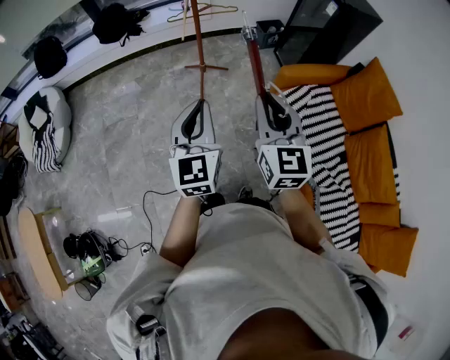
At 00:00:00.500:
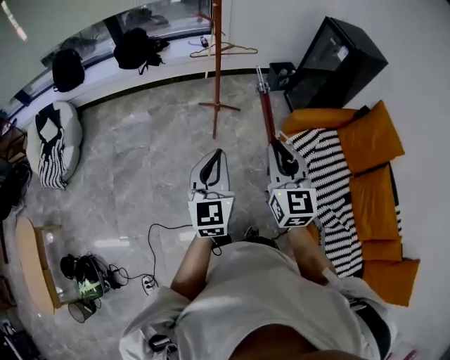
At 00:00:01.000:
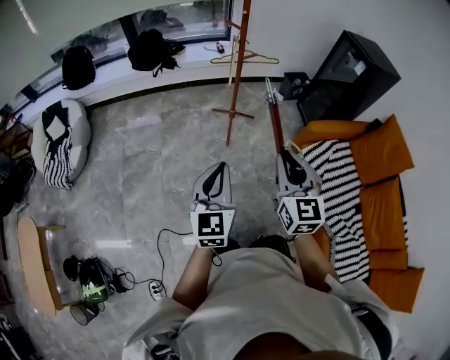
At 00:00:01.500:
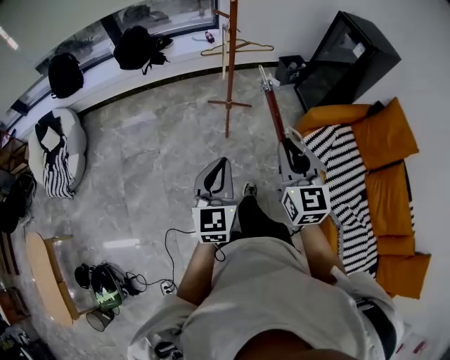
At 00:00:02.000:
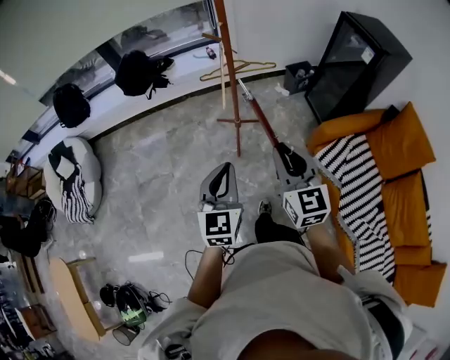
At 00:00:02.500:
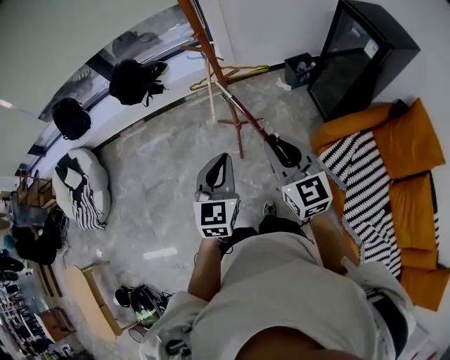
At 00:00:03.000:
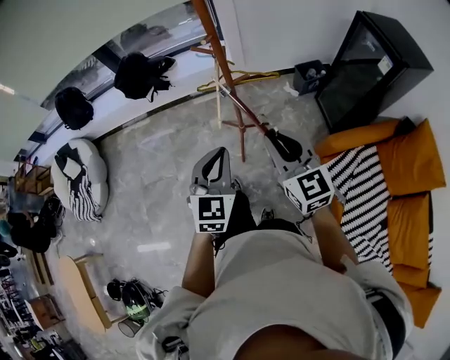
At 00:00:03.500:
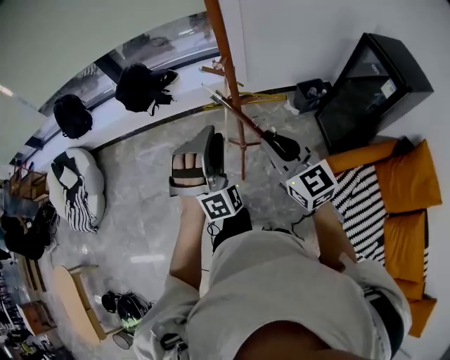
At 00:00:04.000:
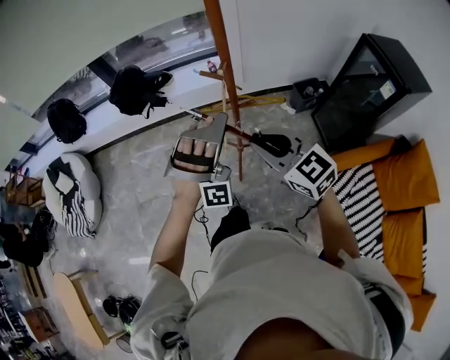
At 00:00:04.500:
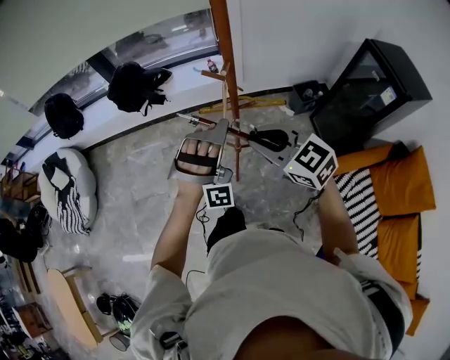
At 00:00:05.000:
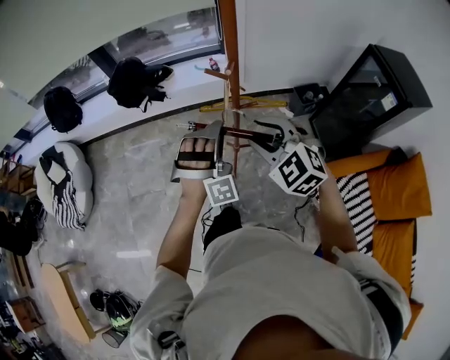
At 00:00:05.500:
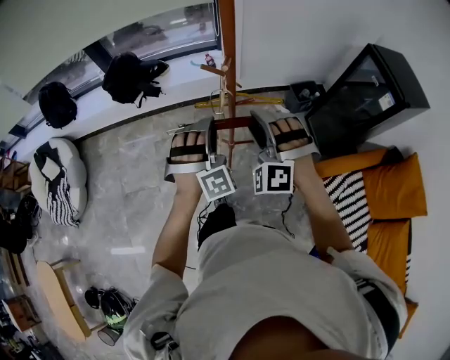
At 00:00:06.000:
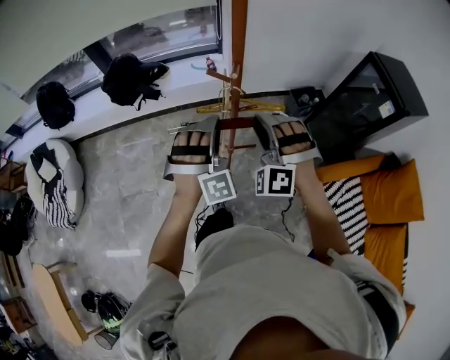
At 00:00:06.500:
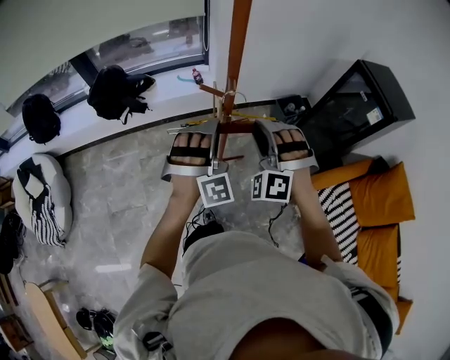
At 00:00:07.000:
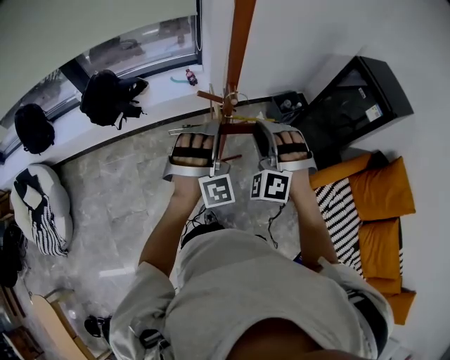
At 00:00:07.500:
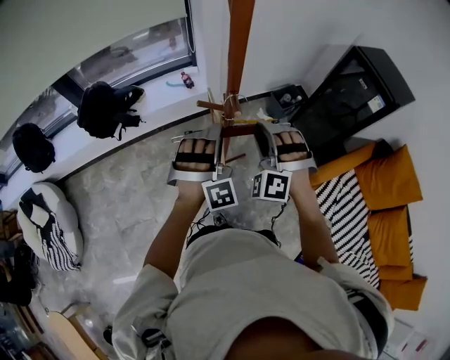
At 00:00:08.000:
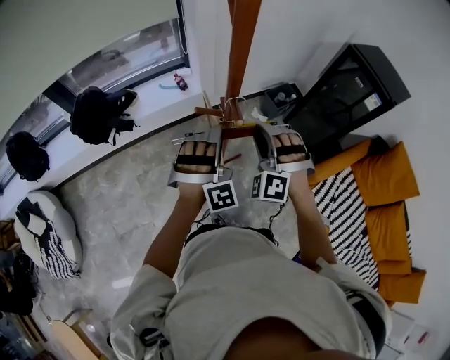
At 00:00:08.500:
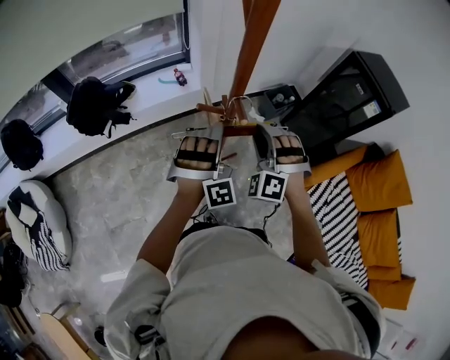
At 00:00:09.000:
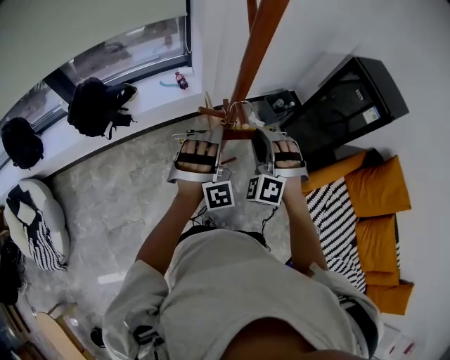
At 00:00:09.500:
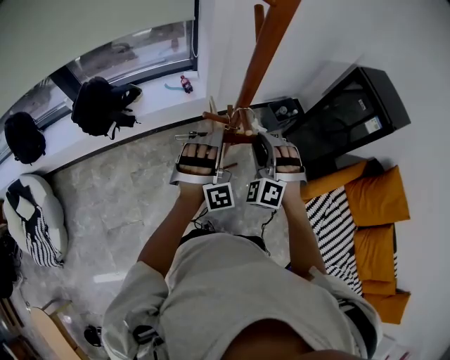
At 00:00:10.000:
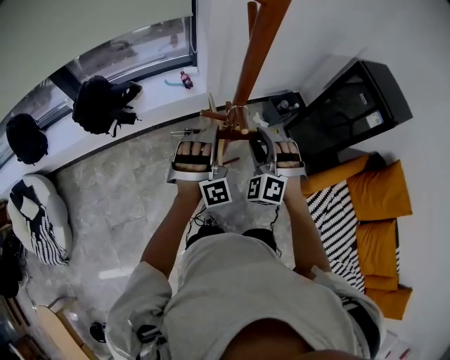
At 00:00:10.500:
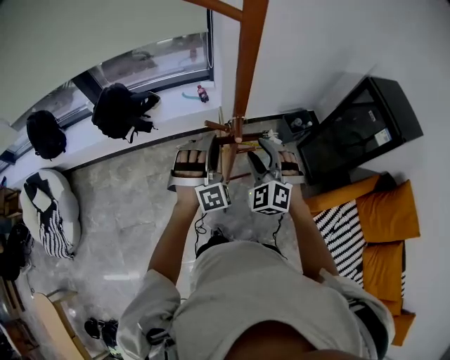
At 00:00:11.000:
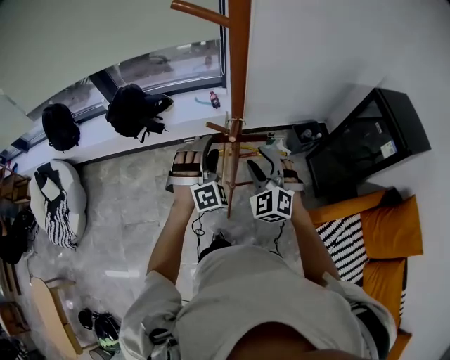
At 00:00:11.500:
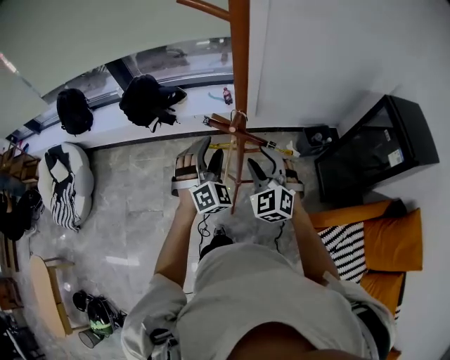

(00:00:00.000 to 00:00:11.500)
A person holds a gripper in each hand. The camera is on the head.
00:00:00.000 - 00:00:02.000: Both grippers travel together forward and to the left, some 25 cm.
00:00:02.000 - 00:00:04.000: Both grippers move forward, about 30 cm. The left gripper rolls clockwise, seen from behind, by about 100 degrees, and opens up; the right gripper turns by some 30 degrees.
00:00:04.000 - 00:00:06.000: The left gripper shifts by about 5 cm, swivels approximately 20 degrees, and closes its fingers. Meanwhile the right gripper heads forward, covering some 10 cm, and twists approximately 70 degrees counterclockwise, seen from behind.
00:00:06.000 - 00:00:07.500: The two grippers go roughly 10 cm forward.
00:00:07.500 - 00:00:09.500: The grippers stay close to where they were, moving slightly.
00:00:09.500 - 00:00:11.500: The right gripper ends up about 5 cm from where it was, and changes its angle by some 40 degrees; the left gripper moves roughly 5 cm, and swivels about 30 degrees.

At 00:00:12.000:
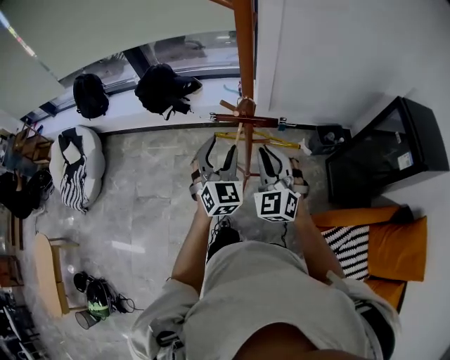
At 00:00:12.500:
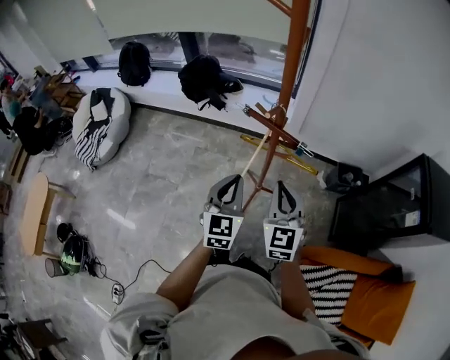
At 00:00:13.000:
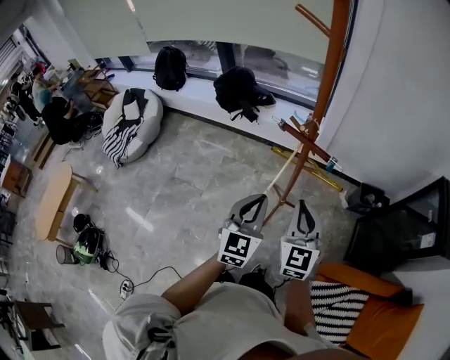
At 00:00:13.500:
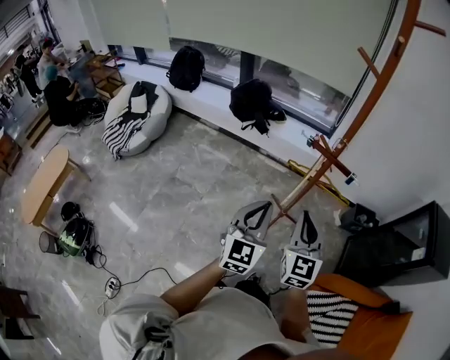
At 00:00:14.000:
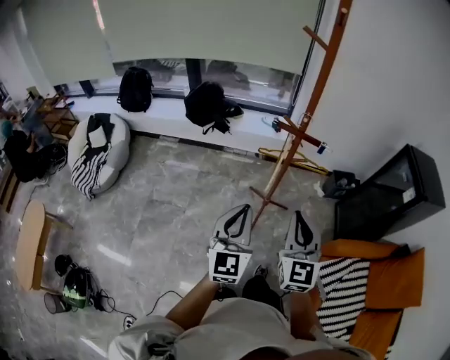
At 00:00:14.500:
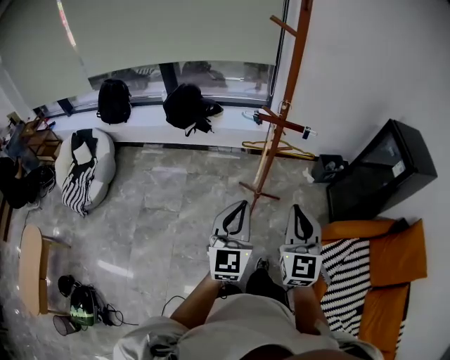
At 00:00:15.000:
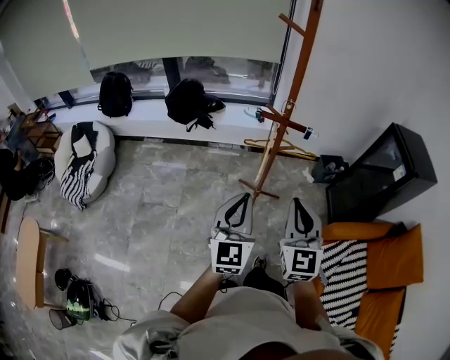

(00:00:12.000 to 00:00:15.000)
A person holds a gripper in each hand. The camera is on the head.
00:00:12.000 - 00:00:13.500: Both grippers travel together backward and to the left, approximately 25 cm. The left gripper turns by approximately 30 degrees, and closes. Meanwhile the right gripper changes its angle by approximately 30 degrees.
00:00:13.500 - 00:00:15.000: The right gripper heads backward, covering roughly 10 cm; the left gripper travels backward by approximately 5 cm.

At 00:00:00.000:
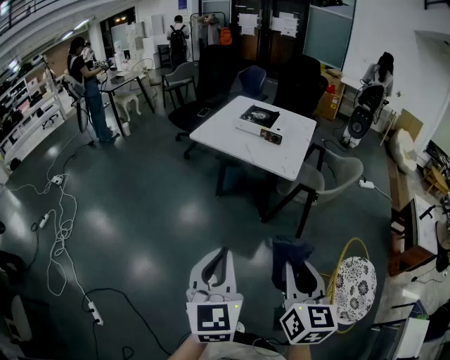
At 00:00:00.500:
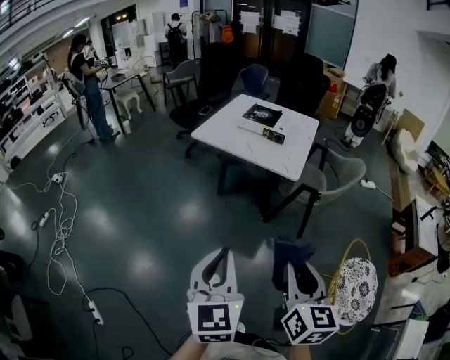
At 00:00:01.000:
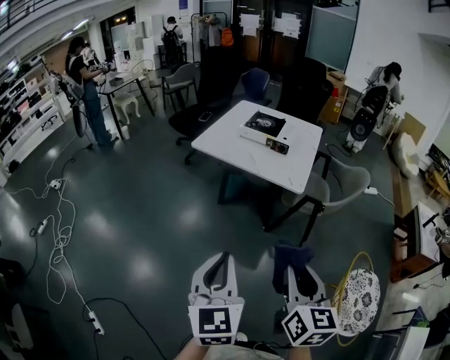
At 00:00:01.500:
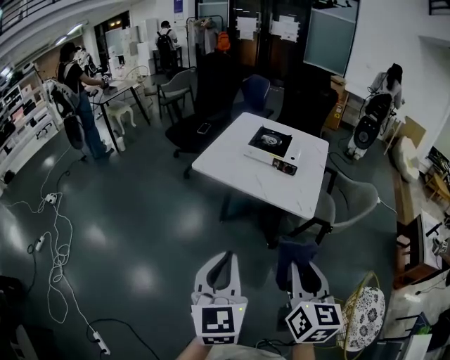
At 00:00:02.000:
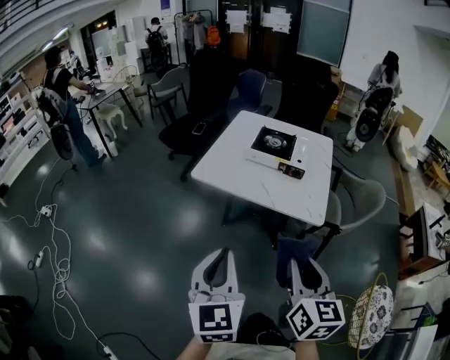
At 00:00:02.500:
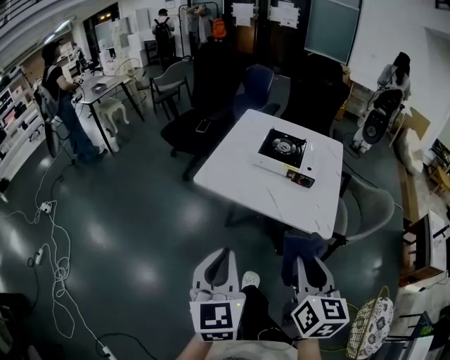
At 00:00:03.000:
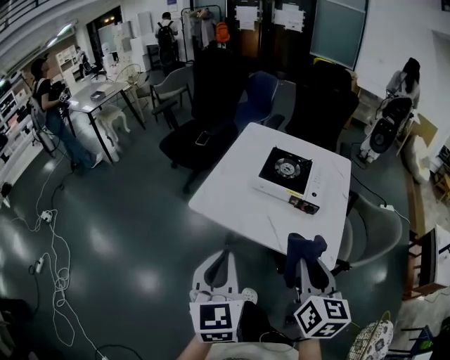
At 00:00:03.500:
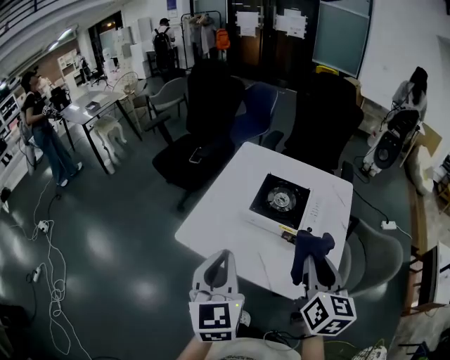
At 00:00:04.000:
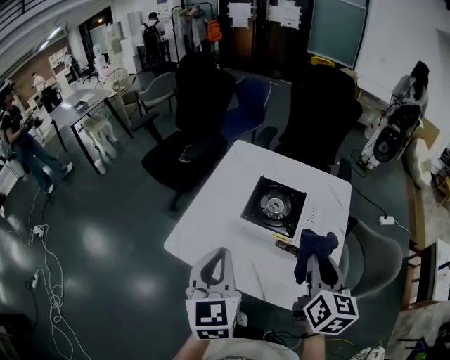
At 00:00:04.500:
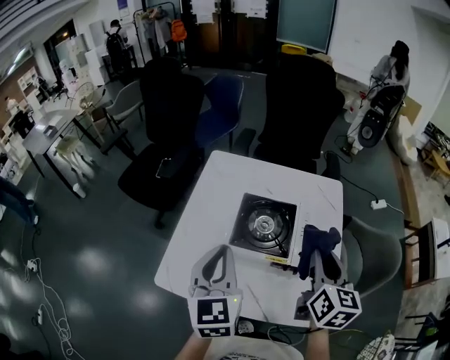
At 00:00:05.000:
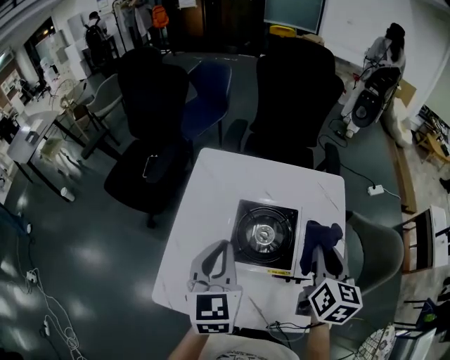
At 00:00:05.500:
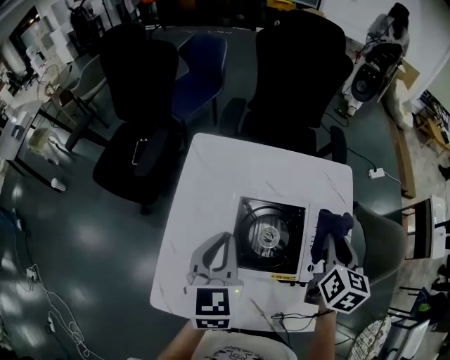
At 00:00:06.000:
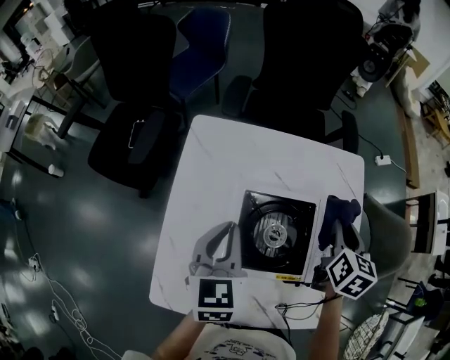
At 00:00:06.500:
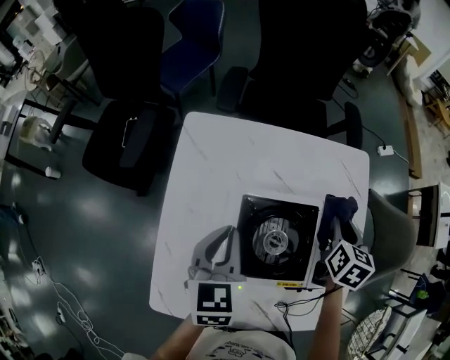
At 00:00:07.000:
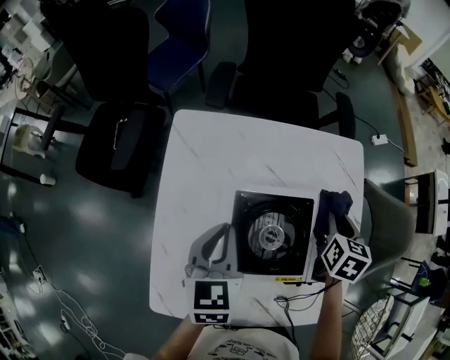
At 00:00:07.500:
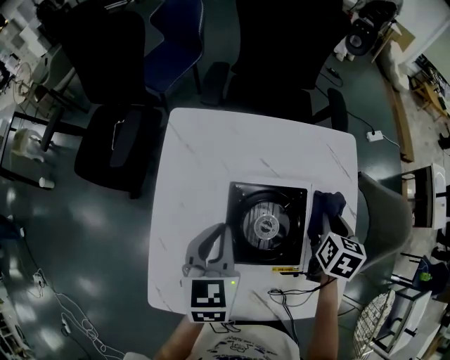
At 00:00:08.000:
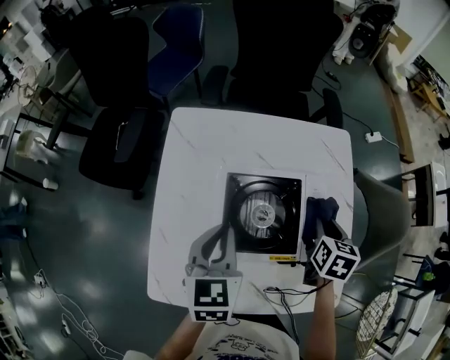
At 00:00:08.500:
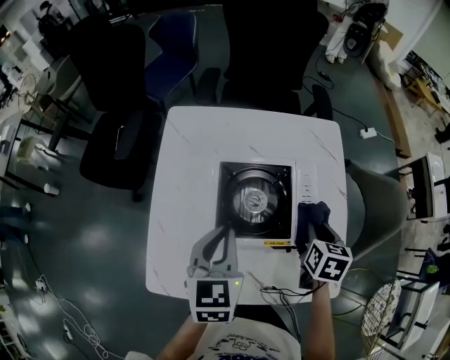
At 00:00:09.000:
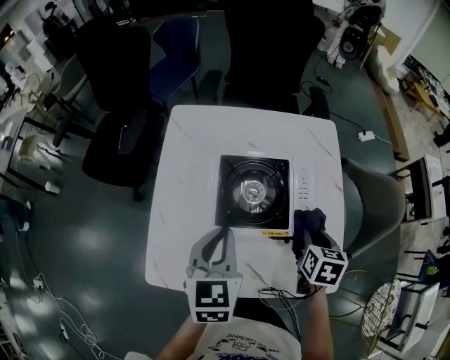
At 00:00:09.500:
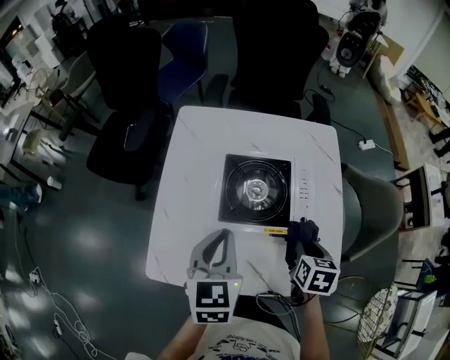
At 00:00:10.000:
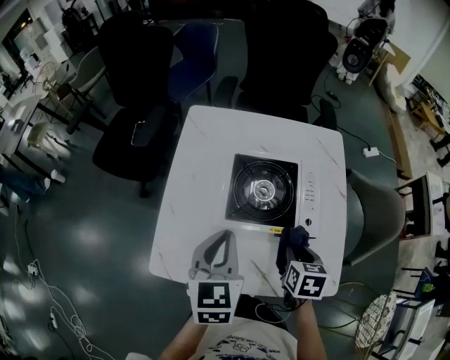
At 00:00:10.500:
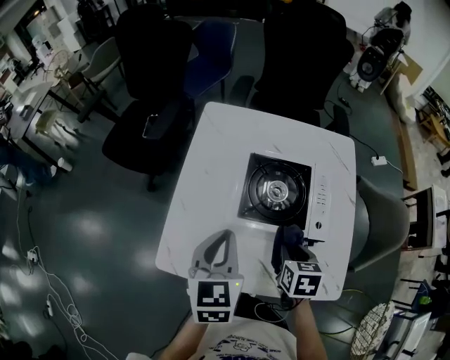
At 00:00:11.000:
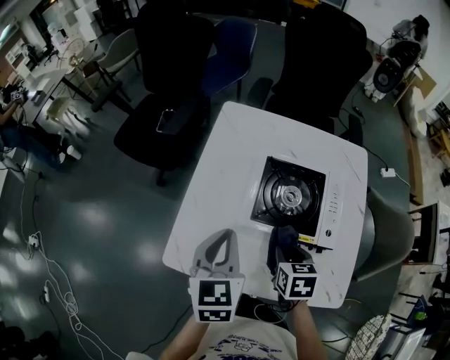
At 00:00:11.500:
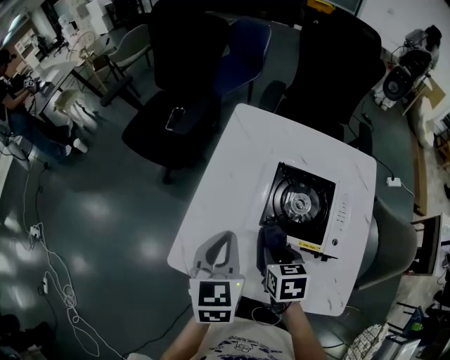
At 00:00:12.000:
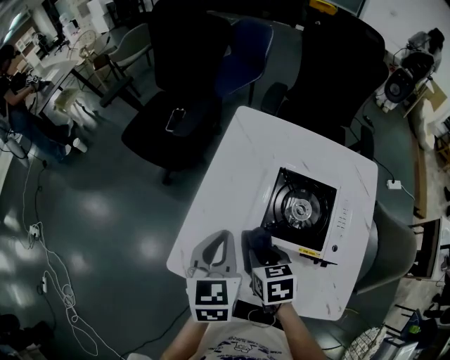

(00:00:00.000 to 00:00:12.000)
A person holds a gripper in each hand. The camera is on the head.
00:00:00.000 - 00:00:02.000: The two grippers go approximately 30 cm forward.
00:00:02.000 - 00:00:04.000: The two grippers travel together, forward, approximately 40 cm.
00:00:04.000 - 00:00:06.000: The left gripper heads forward, covering about 30 cm, and changes its angle by some 30 degrees. Meanwhile the right gripper moves forward and downward, approximately 30 cm, and turns by about 30 degrees.
00:00:06.000 - 00:00:08.000: The right gripper goes approximately 10 cm downward and backward. The left gripper shifts by about 5 cm.
00:00:08.000 - 00:00:10.000: Both grippers move backward, some 15 cm.
00:00:10.000 - 00:00:12.000: The left gripper changes place by roughly 10 cm. The right gripper shifts by some 20 cm, and changes its angle by some 30 degrees.
